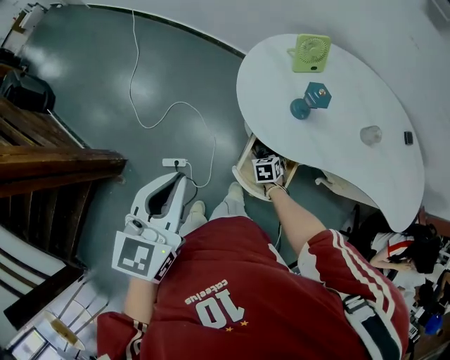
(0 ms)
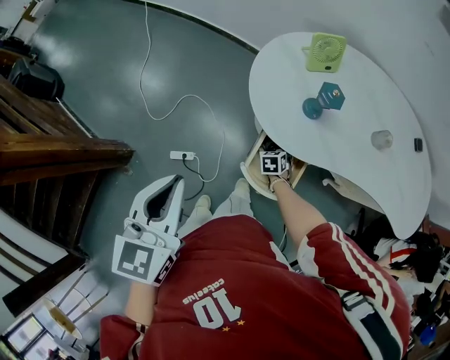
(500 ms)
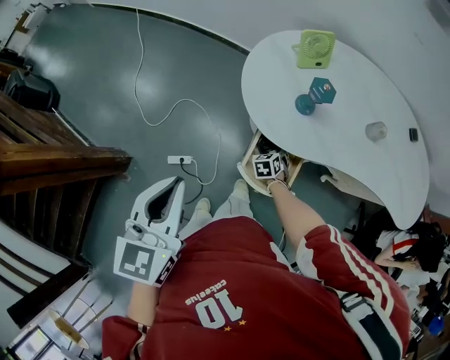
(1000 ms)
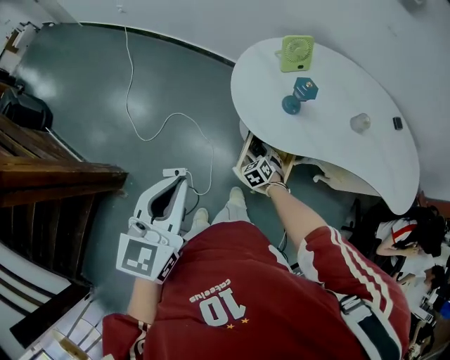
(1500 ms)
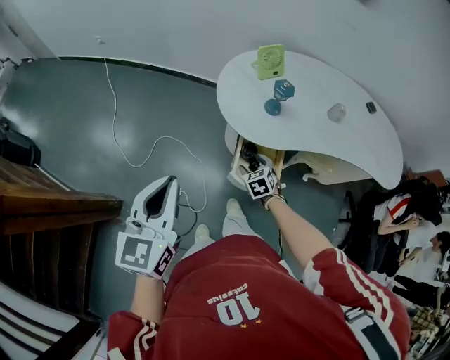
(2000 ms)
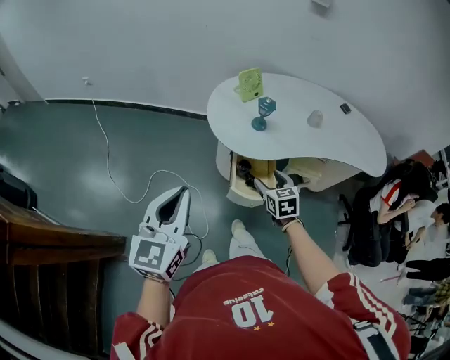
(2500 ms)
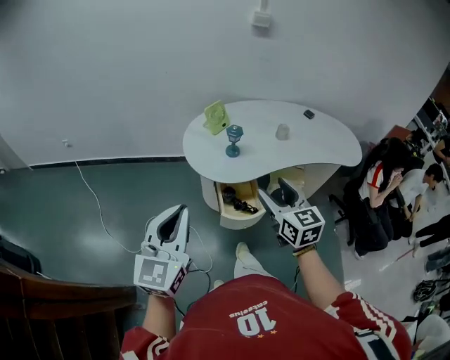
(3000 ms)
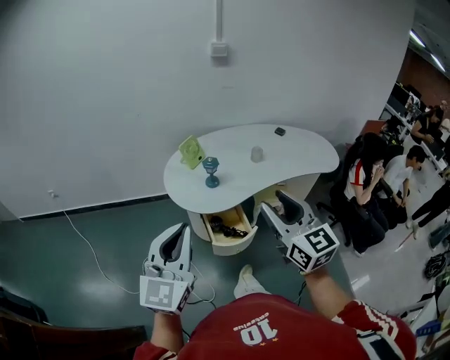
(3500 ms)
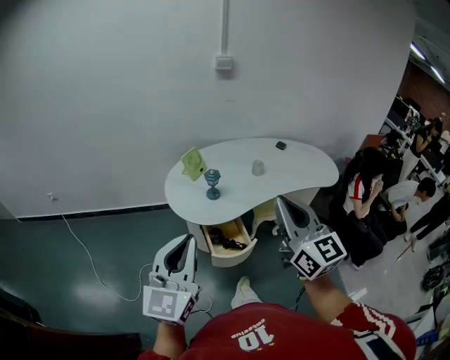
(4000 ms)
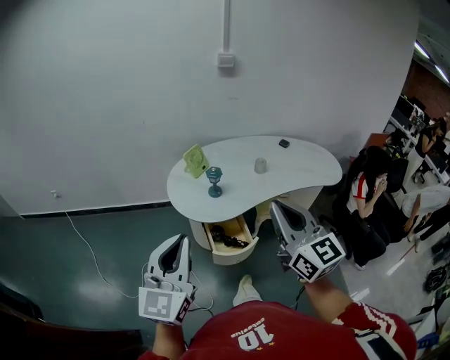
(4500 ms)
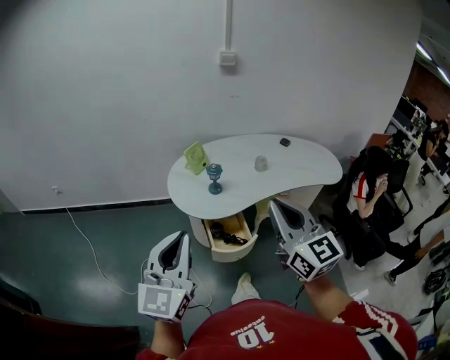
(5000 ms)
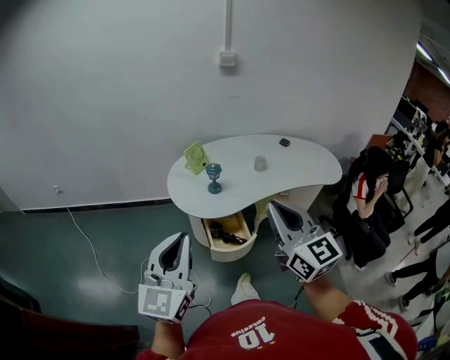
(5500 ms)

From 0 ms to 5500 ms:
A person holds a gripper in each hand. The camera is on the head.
From 0 ms to 2000 ms: The left gripper shifts roughly 5 cm backward and to the left. The right gripper moves upward and backward, approximately 15 cm.
From 2000 ms to 3500 ms: The right gripper moves upward, roughly 50 cm, and tips its fingers upward by some 50 degrees; the left gripper travels upward by roughly 15 cm, and swivels approximately 40 degrees.
From 3500 ms to 5500 ms: The right gripper closes its fingers.

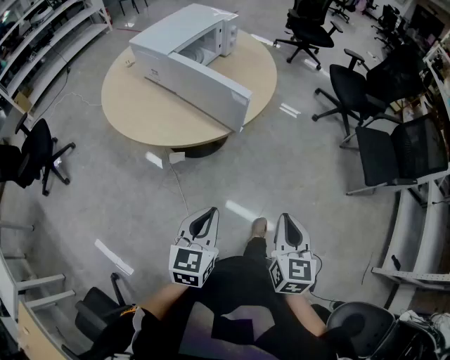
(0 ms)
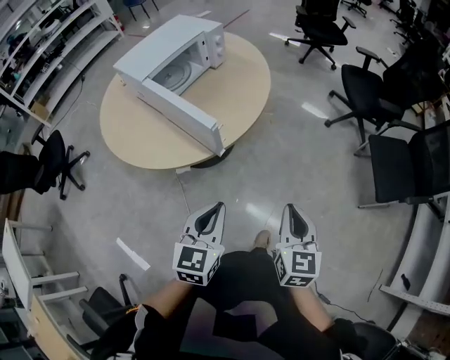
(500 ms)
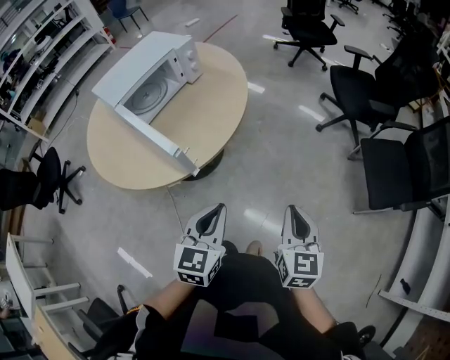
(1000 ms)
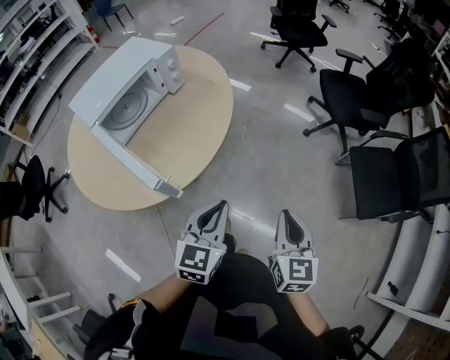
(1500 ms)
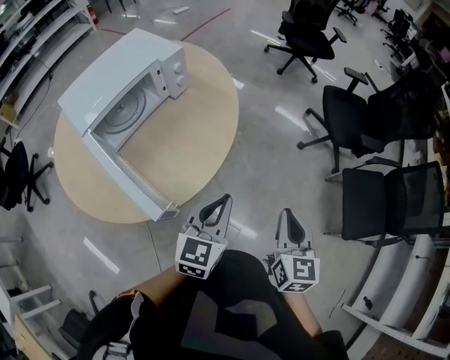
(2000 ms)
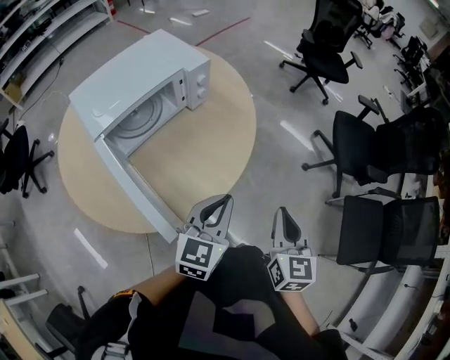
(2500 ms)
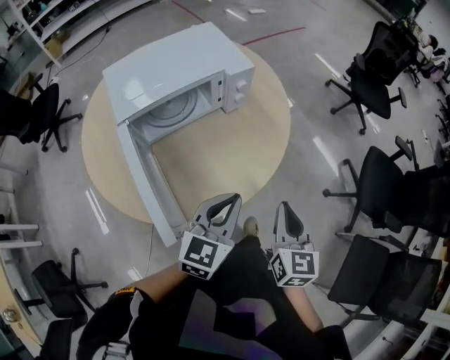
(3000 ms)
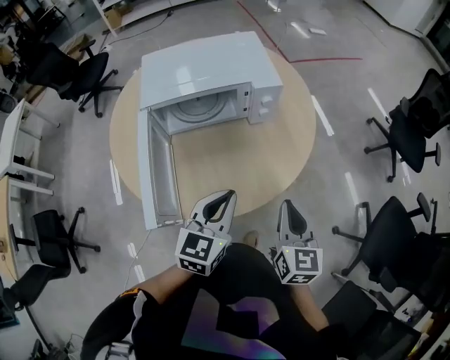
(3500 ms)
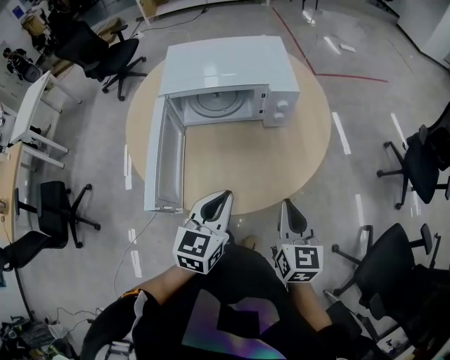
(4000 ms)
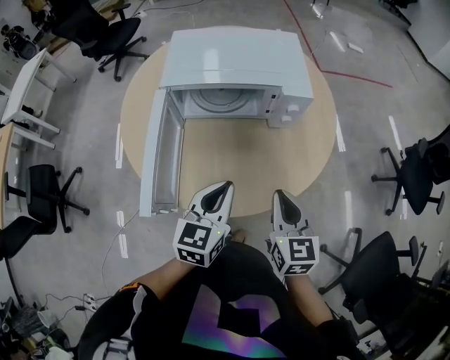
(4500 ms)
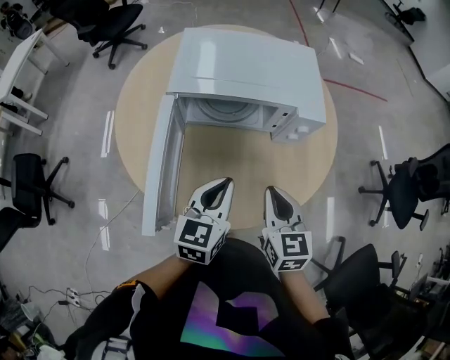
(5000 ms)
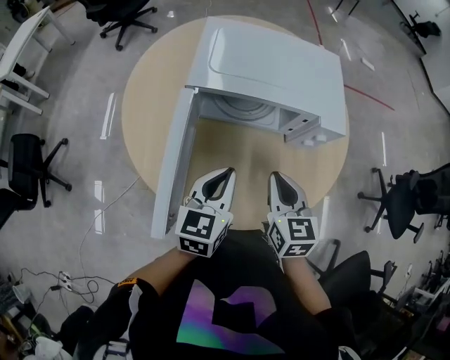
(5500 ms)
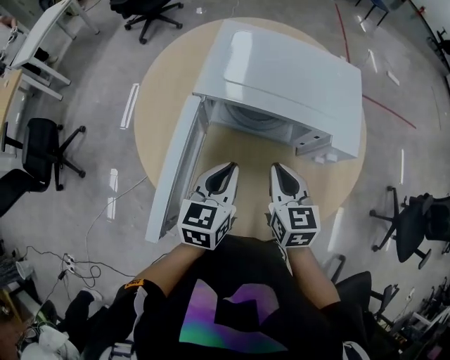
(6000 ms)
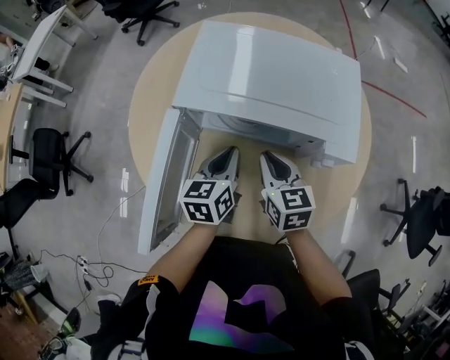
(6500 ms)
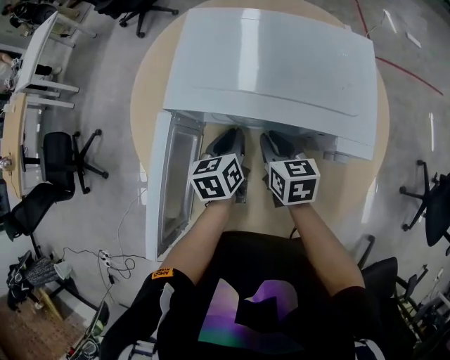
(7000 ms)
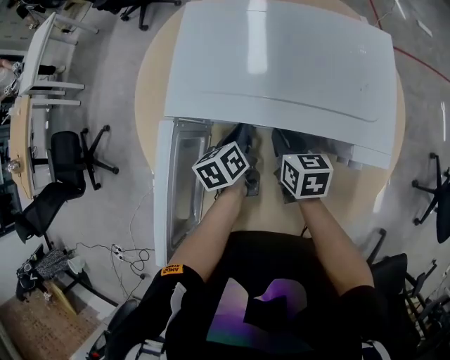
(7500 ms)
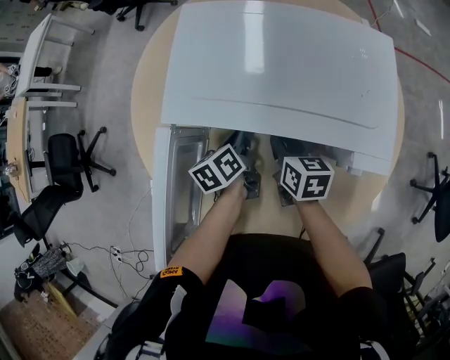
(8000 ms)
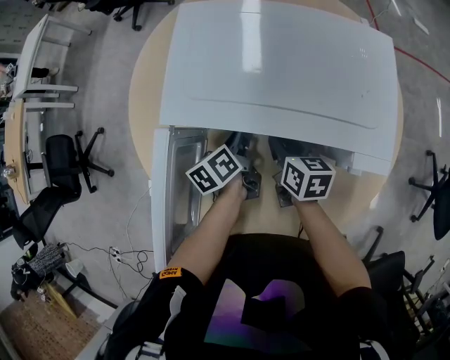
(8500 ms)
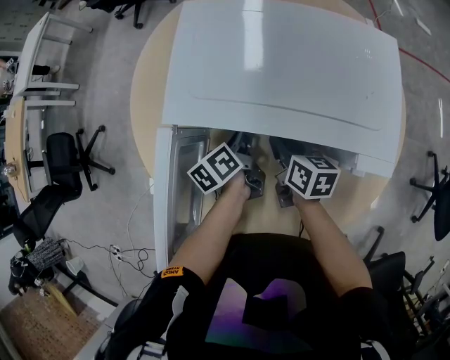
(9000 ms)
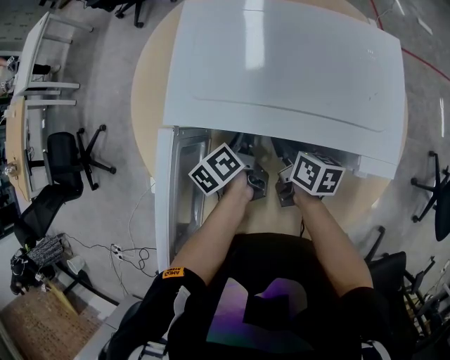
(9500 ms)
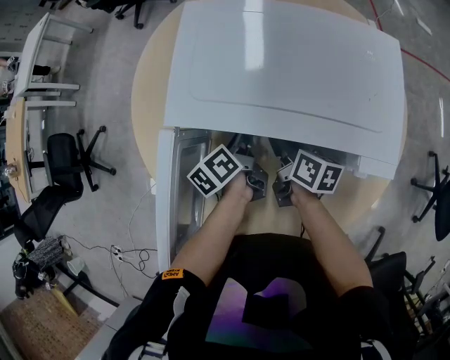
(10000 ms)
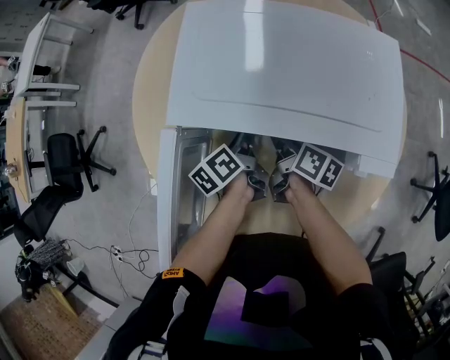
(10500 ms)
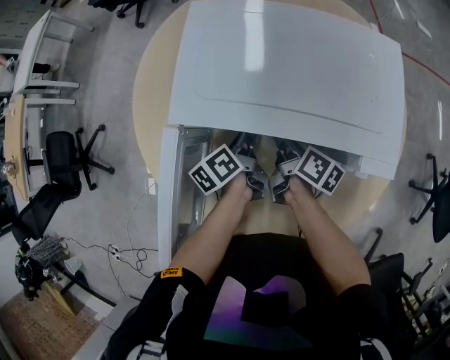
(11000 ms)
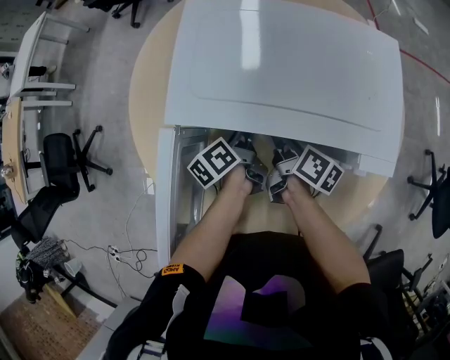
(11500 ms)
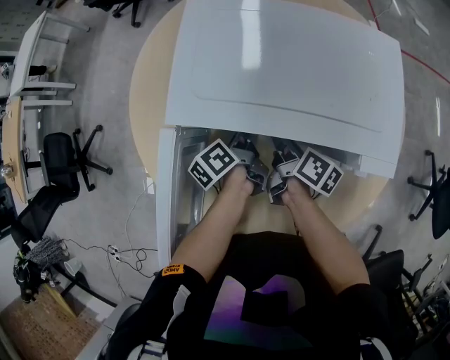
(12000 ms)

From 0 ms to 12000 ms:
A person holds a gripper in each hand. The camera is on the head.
From 0 ms to 2000 ms: The two grippers travel together, forward and to the right, about 50 cm.
From 2000 ms to 4000 ms: The right gripper shifts by some 30 cm, and turns by roughly 50 degrees. The left gripper moves roughly 20 cm, and rotates about 50 degrees.
From 4000 ms to 6000 ms: Both grippers travel together forward and to the left, about 25 cm. The left gripper turns by roughly 20 degrees. Meanwhile the right gripper swivels some 30 degrees.
From 6000 ms to 8000 ms: The two grippers go roughly 20 cm downward and forward. The right gripper changes its angle by roughly 30 degrees; the left gripper swivels some 40 degrees.
From 8000 ms to 10000 ms: The right gripper swivels about 20 degrees.
From 10000 ms to 12000 ms: The grippers stay close to where they were, moving slightly.

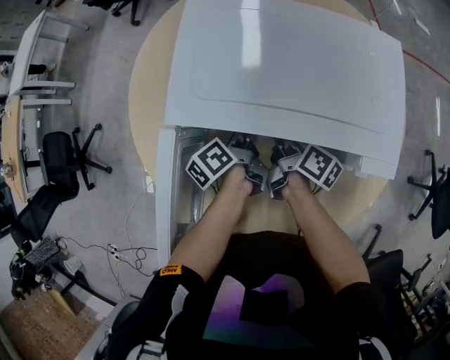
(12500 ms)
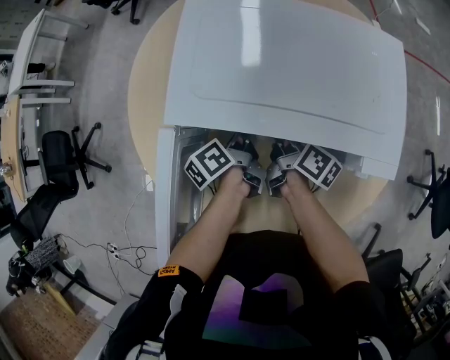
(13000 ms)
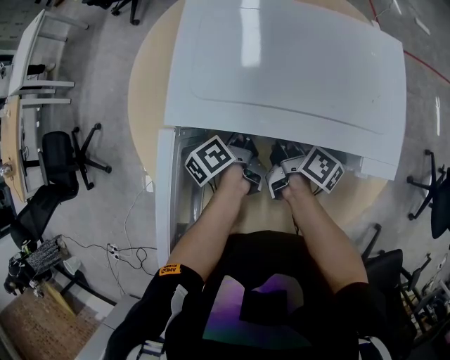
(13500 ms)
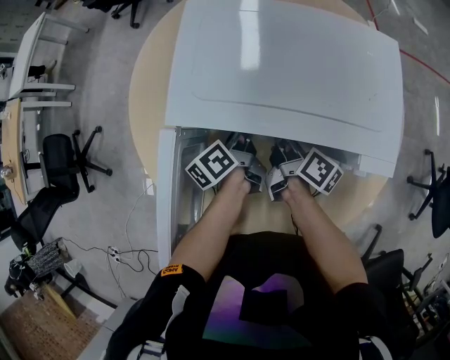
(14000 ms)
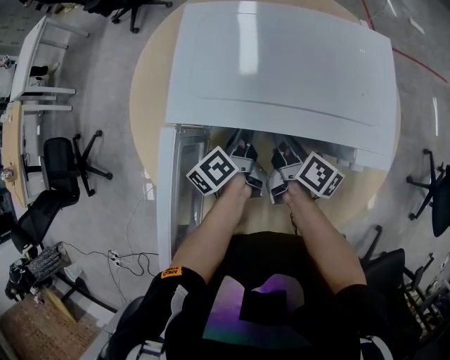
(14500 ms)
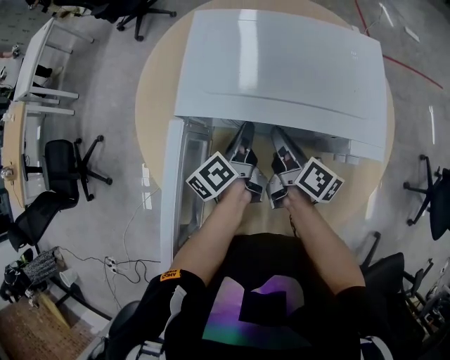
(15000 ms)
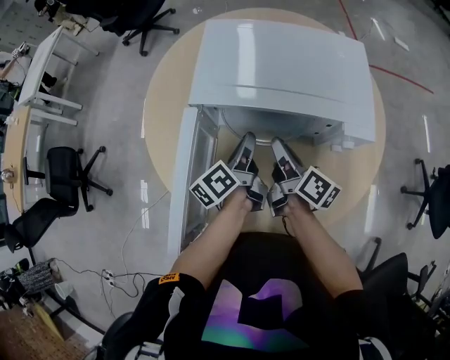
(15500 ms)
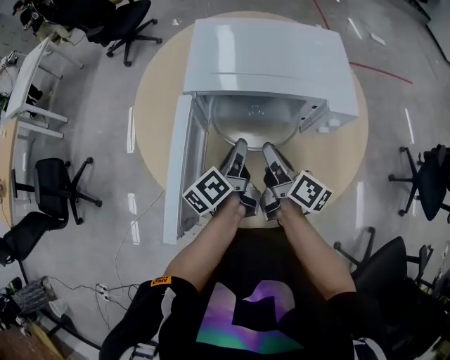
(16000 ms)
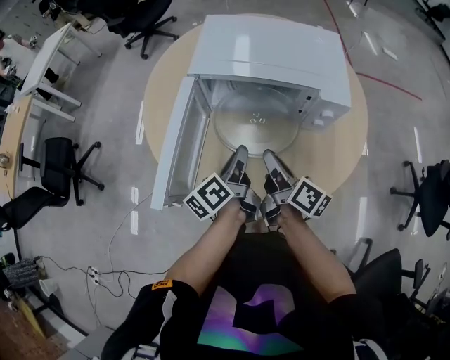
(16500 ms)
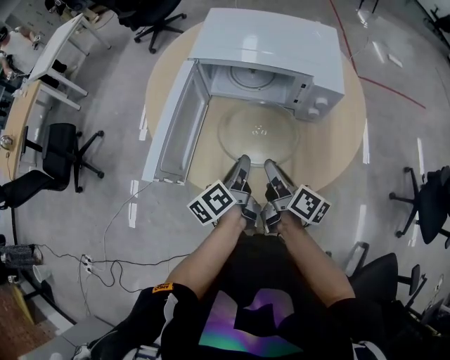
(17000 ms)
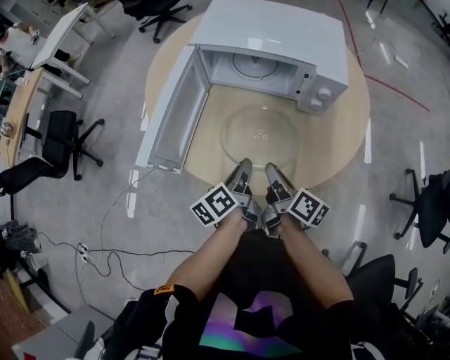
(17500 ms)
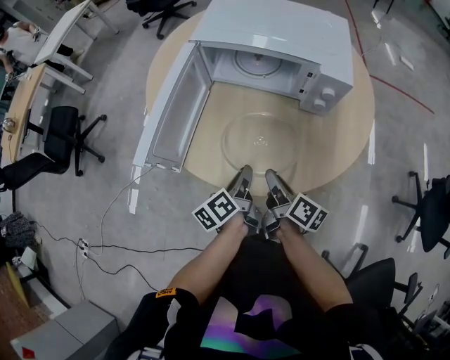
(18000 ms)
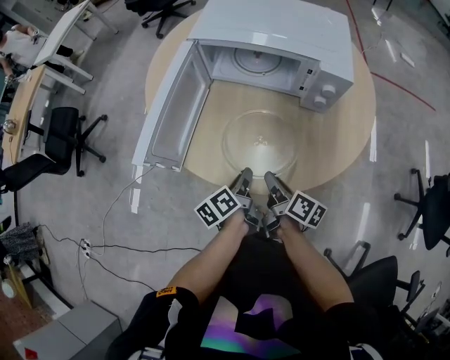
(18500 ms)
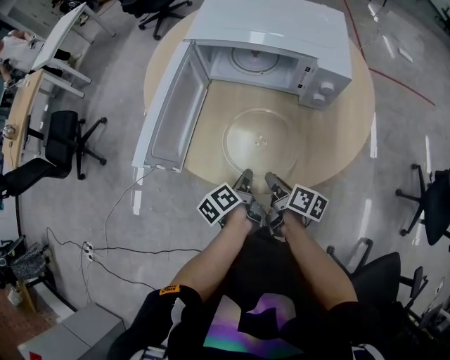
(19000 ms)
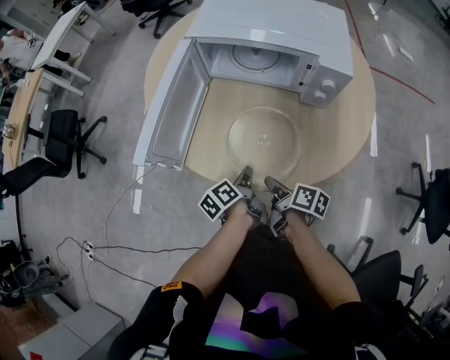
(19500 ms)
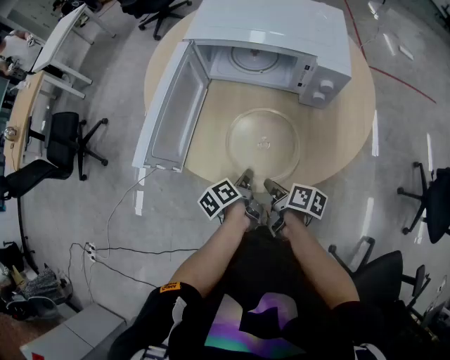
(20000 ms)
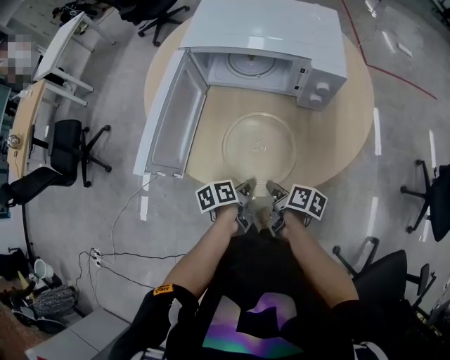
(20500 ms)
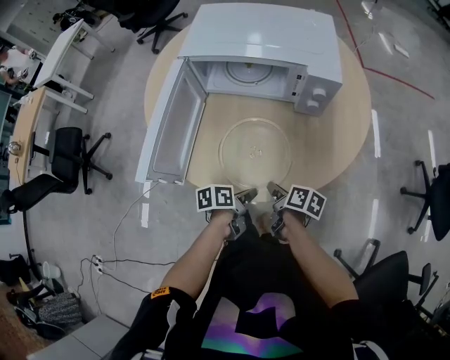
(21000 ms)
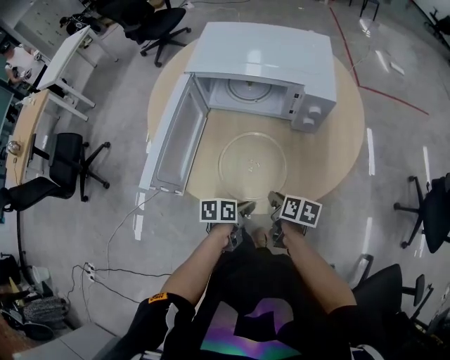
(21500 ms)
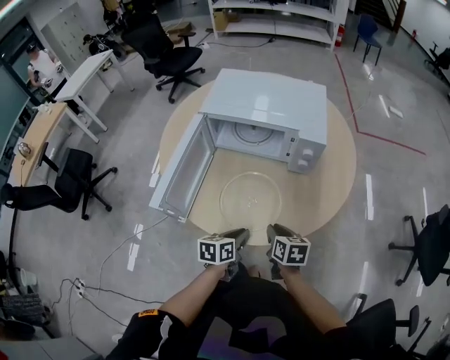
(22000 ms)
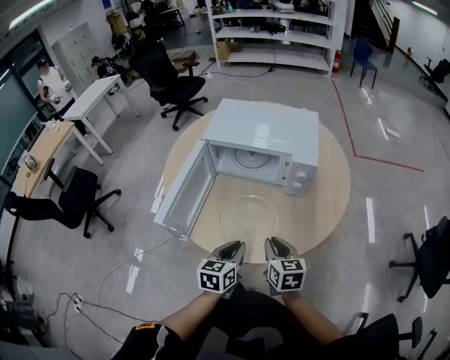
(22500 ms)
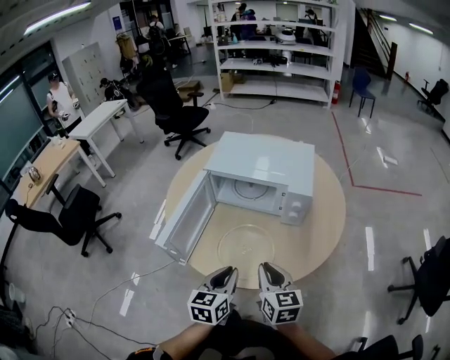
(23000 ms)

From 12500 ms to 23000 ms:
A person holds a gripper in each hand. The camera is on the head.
From 12500 ms to 14500 ms: The grippers move only a little.
From 14500 ms to 16500 ms: The two grippers go roughly 25 cm backward.
From 16500 ms to 19000 ms: The grippers both shift downward and backward by some 20 cm. The left gripper swivels approximately 20 degrees; the right gripper swivels roughly 20 degrees.
From 19000 ms to 21000 ms: The left gripper swivels approximately 40 degrees.
From 21000 ms to 23000 ms: Both grippers travel together upward, about 25 cm. The left gripper rotates roughly 60 degrees. Meanwhile the right gripper rolls counterclockwise, seen from behind, by about 60 degrees.
